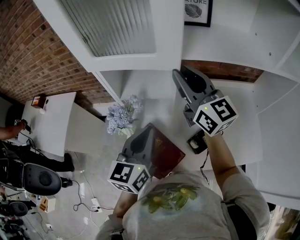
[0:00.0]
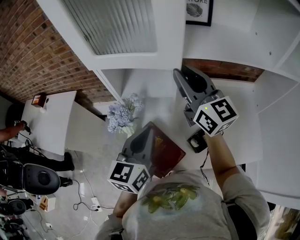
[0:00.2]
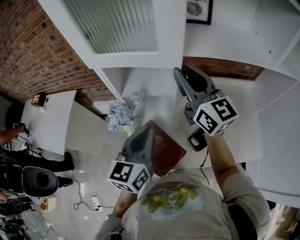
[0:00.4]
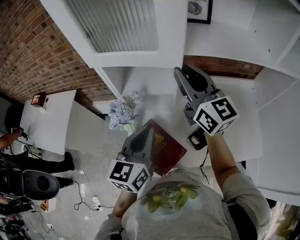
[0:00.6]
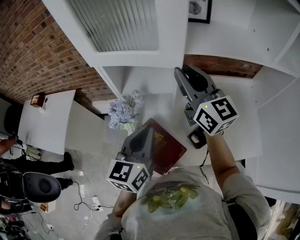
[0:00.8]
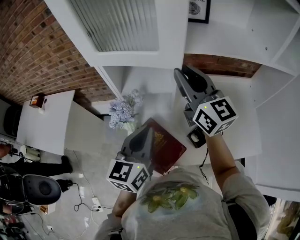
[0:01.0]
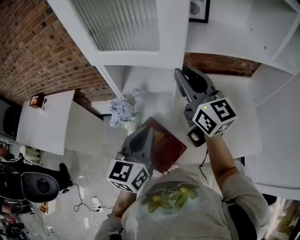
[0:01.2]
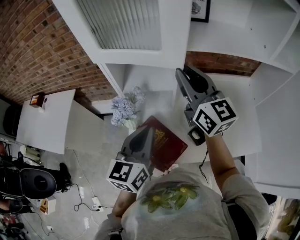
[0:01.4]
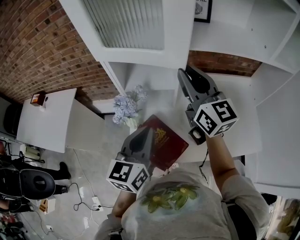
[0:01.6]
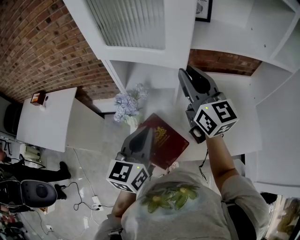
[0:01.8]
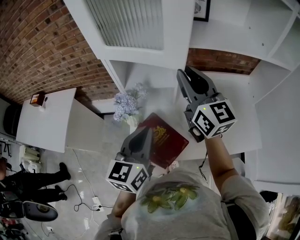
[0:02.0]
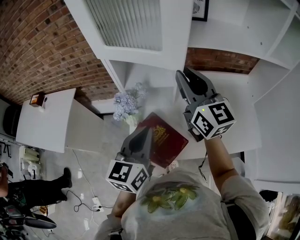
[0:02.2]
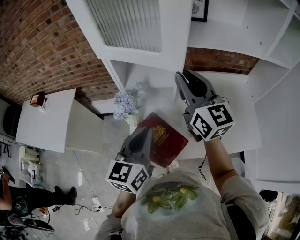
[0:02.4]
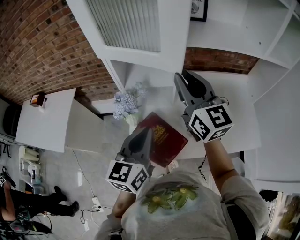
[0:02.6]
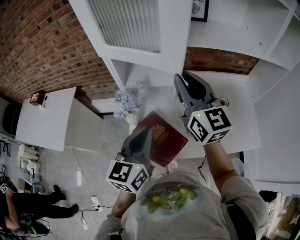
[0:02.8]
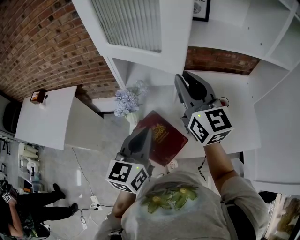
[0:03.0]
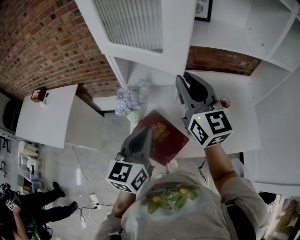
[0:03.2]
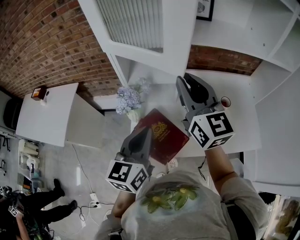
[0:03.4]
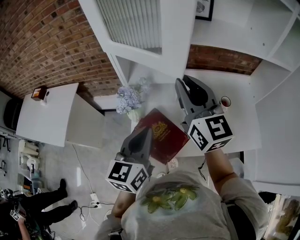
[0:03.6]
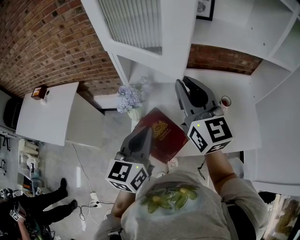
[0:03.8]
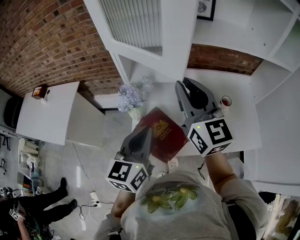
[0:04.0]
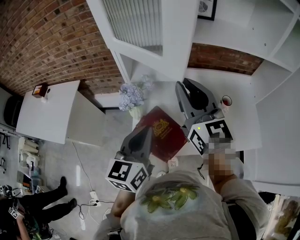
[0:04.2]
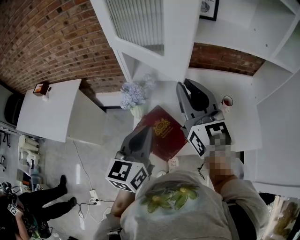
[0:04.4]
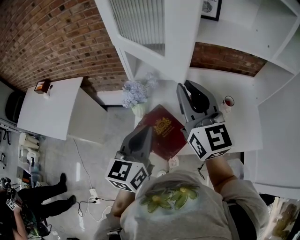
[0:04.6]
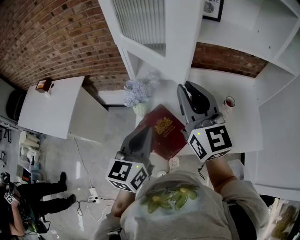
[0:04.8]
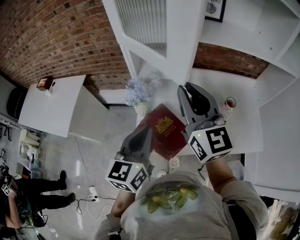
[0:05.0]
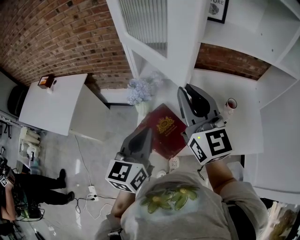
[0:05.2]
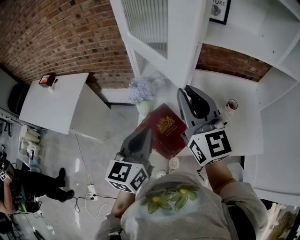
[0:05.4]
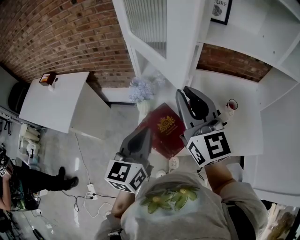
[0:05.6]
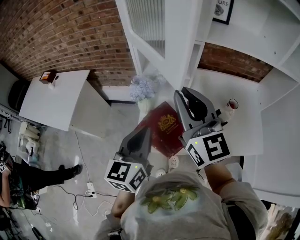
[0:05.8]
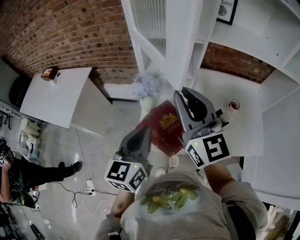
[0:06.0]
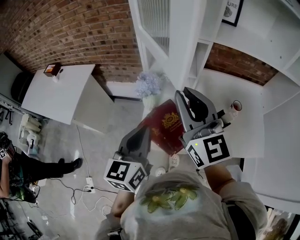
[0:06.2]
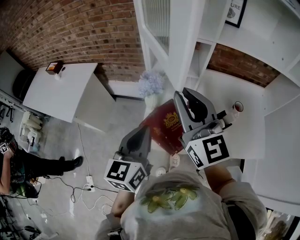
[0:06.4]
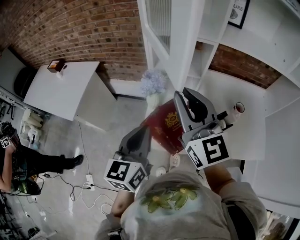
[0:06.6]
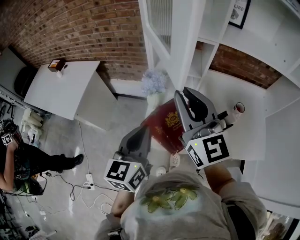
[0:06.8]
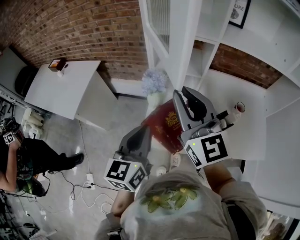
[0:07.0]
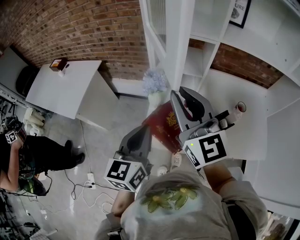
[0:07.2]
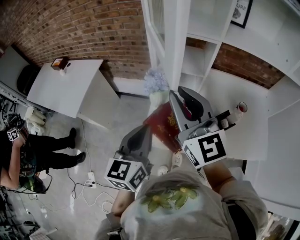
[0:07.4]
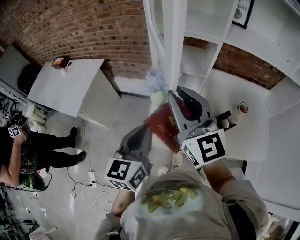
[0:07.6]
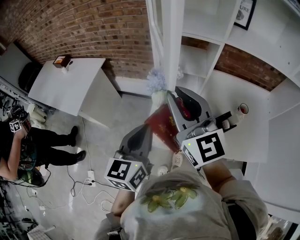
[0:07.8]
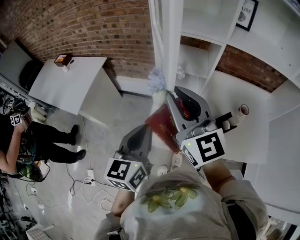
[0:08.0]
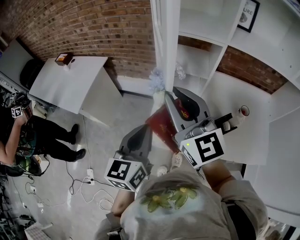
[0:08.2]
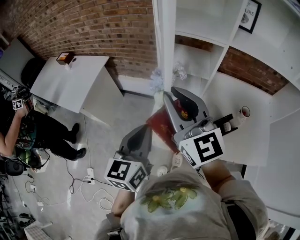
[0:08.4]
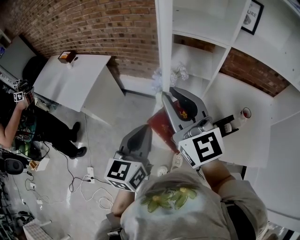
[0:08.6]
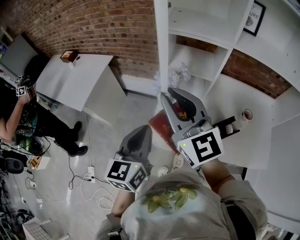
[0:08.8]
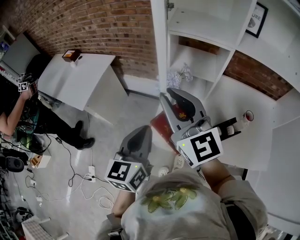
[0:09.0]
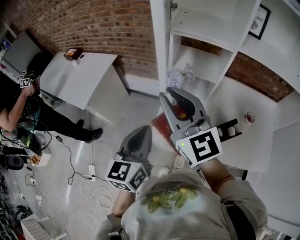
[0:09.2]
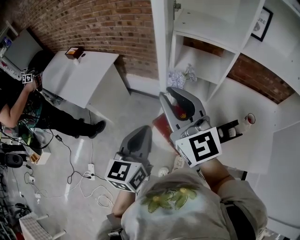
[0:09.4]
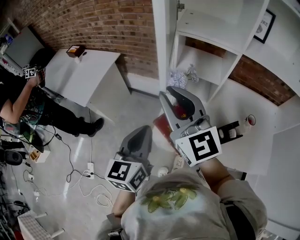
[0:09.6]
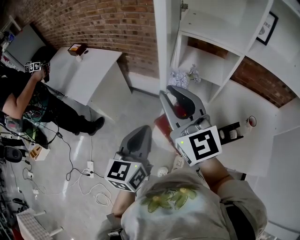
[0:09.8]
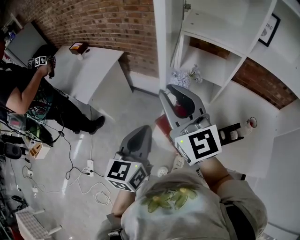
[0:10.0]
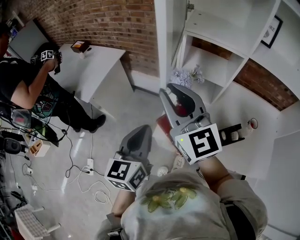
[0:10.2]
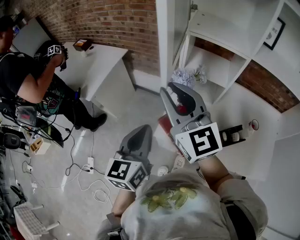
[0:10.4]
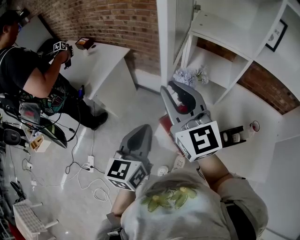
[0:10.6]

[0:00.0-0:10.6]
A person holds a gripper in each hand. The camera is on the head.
0:00.0 to 0:01.6: The left gripper shifts by approximately 5 cm.
0:01.6 to 0:03.0: The right gripper moves about 5 cm.
0:03.0 to 0:04.6: The right gripper heads backward, covering approximately 5 cm.
0:04.6 to 0:06.0: The right gripper changes place by approximately 5 cm.
0:06.0 to 0:07.6: The right gripper moves to the left, roughly 5 cm.
0:07.6 to 0:09.0: There are only small adjustments of the grippers.
0:09.0 to 0:10.6: The right gripper moves to the left, some 5 cm.

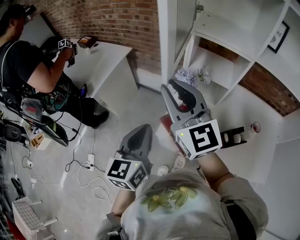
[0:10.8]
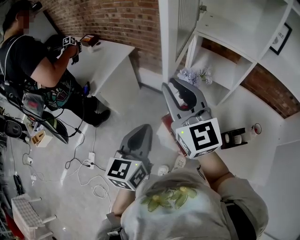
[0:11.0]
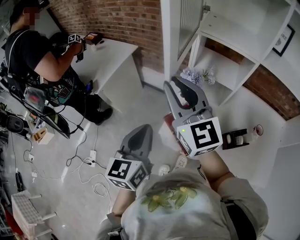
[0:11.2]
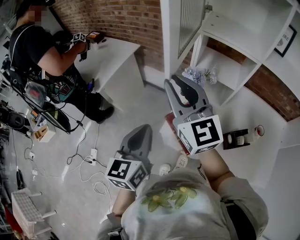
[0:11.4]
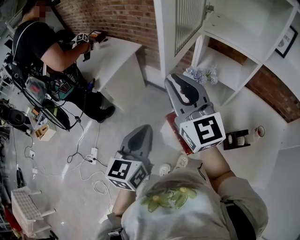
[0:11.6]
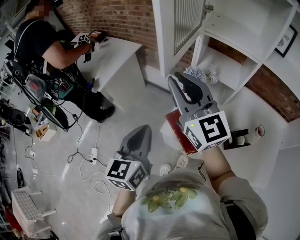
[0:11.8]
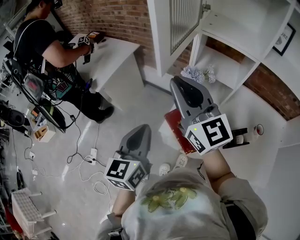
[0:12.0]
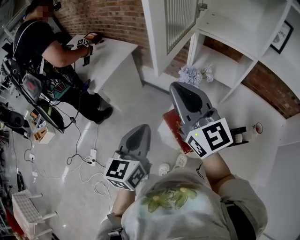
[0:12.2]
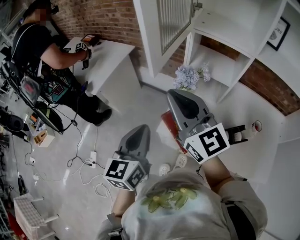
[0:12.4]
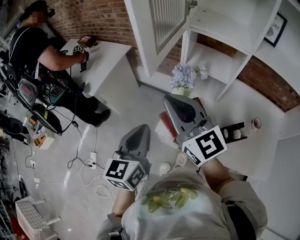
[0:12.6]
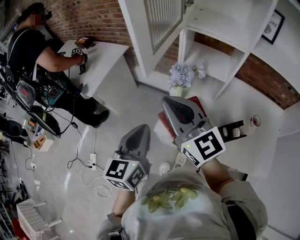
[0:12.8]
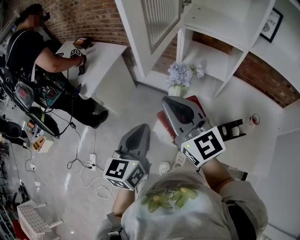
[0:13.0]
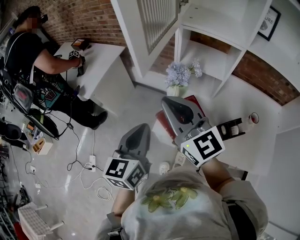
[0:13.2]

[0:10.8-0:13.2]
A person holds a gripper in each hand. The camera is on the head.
0:10.8 to 0:12.0: The grippers move only a little.
0:12.0 to 0:13.2: The right gripper moves roughly 5 cm.

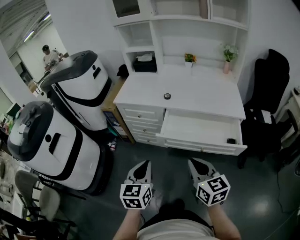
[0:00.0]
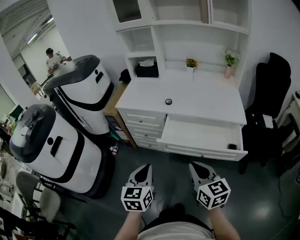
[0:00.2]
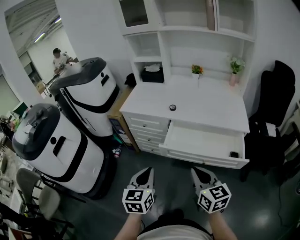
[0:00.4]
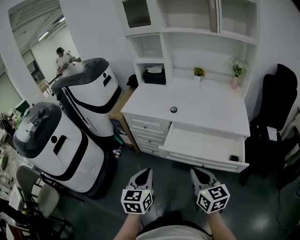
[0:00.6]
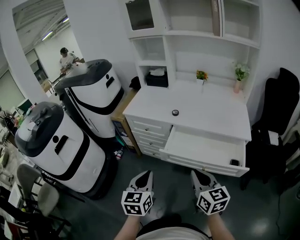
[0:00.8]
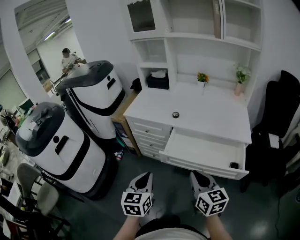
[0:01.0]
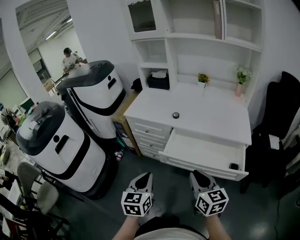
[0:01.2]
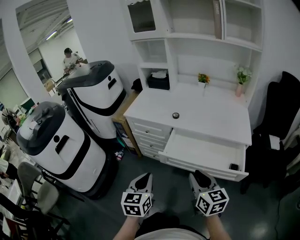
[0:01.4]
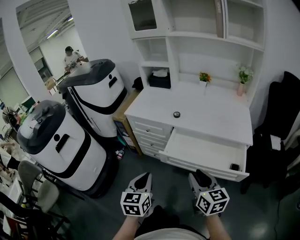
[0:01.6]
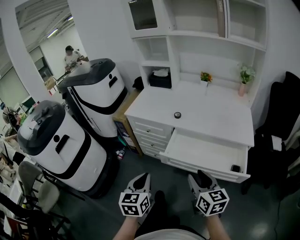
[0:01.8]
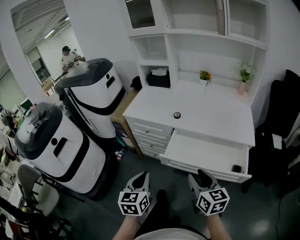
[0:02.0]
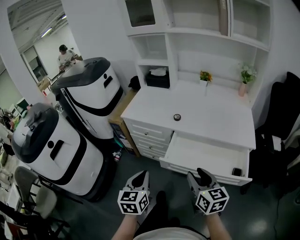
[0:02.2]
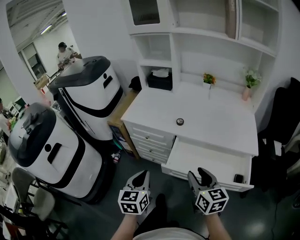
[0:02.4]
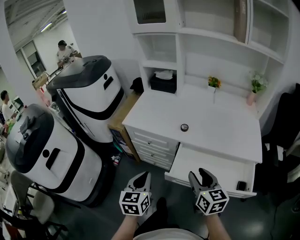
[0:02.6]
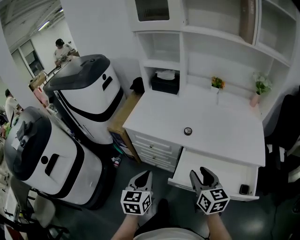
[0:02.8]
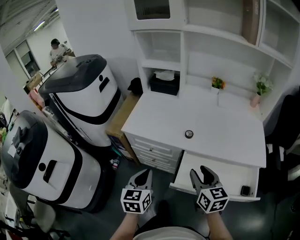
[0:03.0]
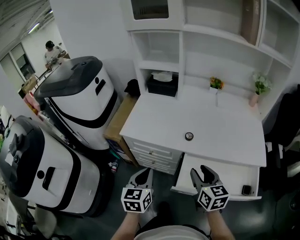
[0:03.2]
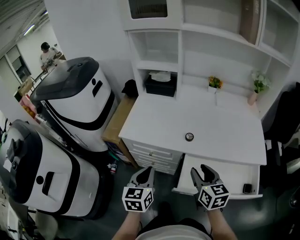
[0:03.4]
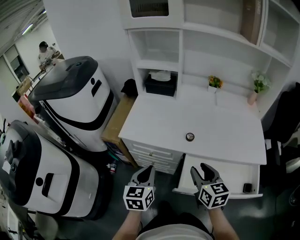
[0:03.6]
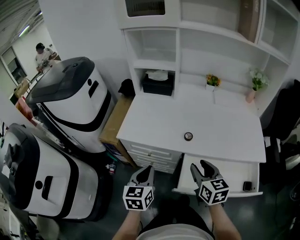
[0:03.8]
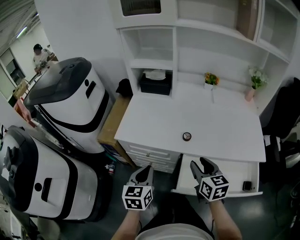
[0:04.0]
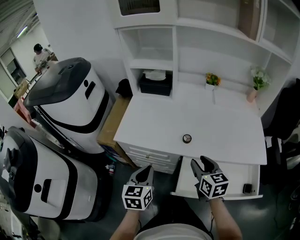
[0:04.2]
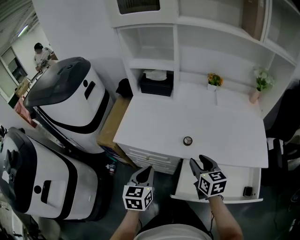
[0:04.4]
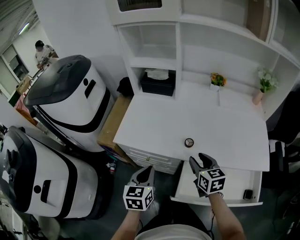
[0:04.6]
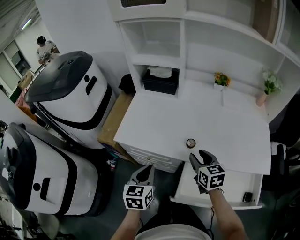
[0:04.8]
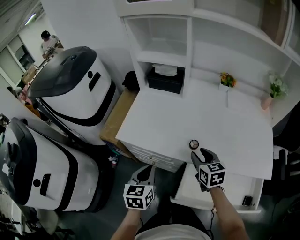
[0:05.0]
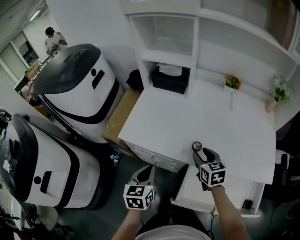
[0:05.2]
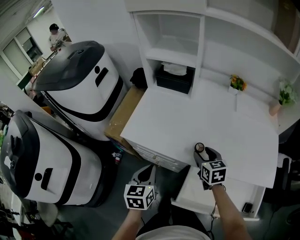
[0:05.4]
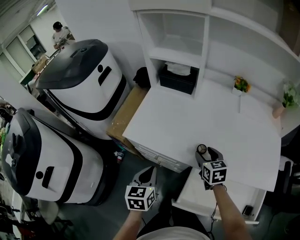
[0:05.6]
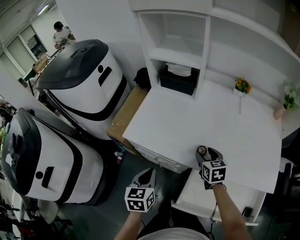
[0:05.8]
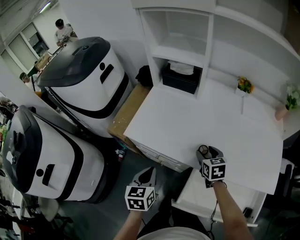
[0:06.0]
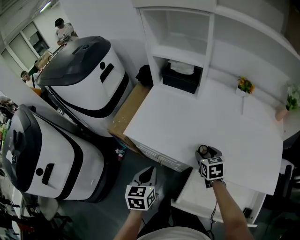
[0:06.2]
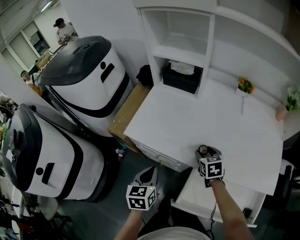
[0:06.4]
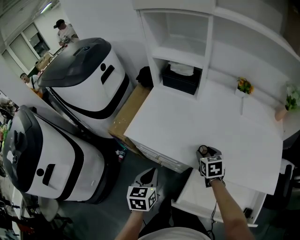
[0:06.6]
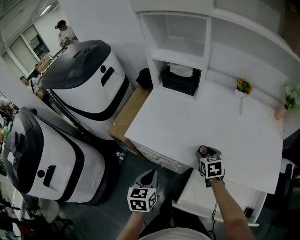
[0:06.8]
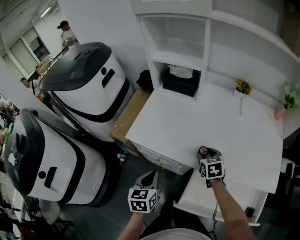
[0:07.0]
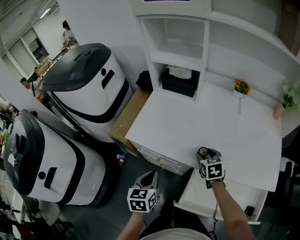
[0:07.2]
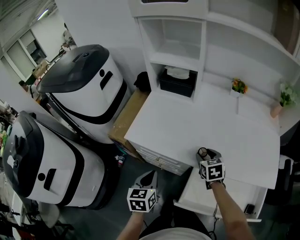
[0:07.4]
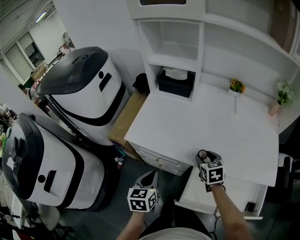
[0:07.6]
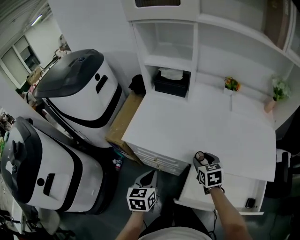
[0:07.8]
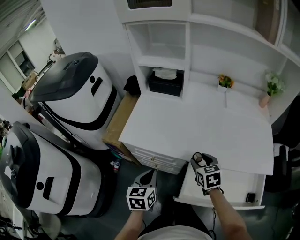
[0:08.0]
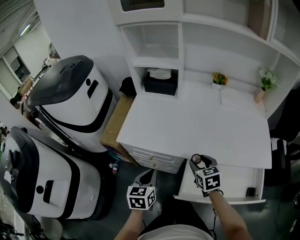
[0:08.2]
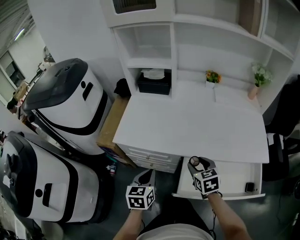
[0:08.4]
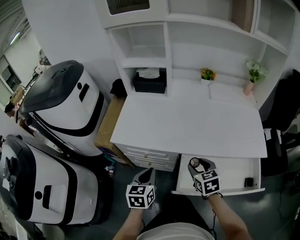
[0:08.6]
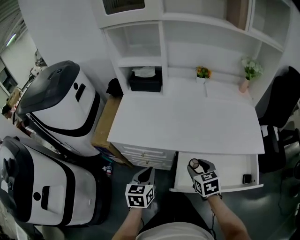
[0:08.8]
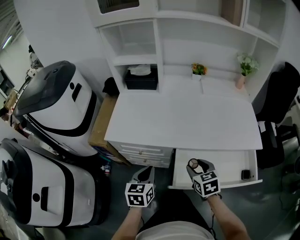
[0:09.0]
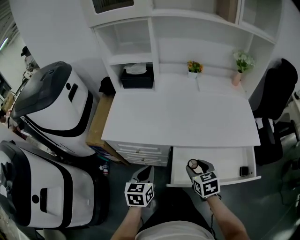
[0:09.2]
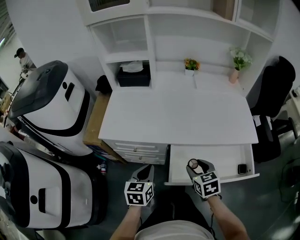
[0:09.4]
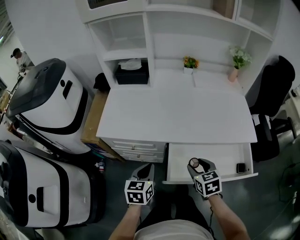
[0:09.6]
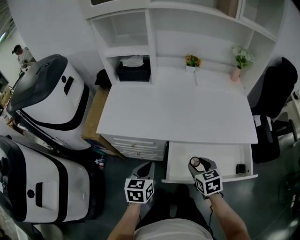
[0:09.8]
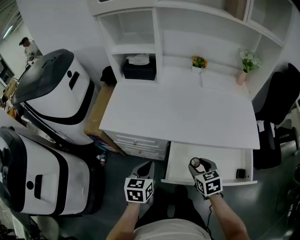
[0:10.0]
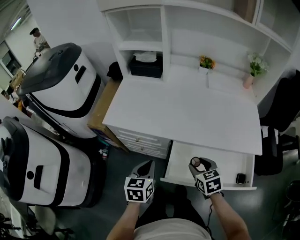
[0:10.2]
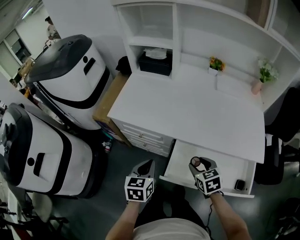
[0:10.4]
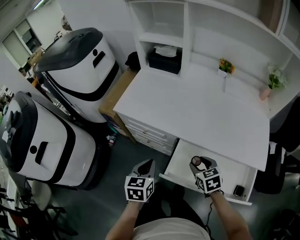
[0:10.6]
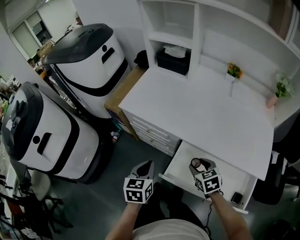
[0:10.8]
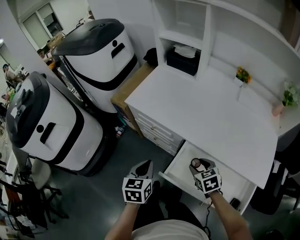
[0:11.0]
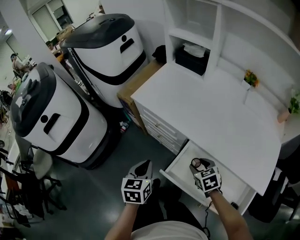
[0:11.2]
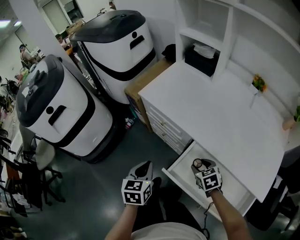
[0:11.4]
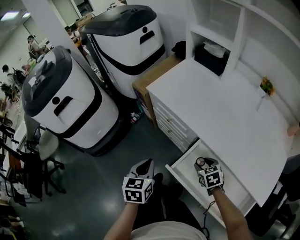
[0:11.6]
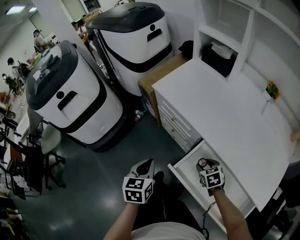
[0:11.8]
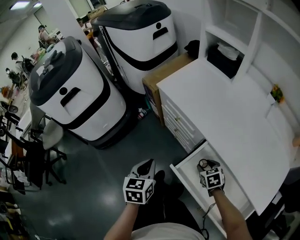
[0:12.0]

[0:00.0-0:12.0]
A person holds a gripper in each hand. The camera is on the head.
0:00.0 to 0:01.6: The right gripper shifts by about 5 cm, and opens.
0:01.6 to 0:03.0: Both grippers move forward, about 25 cm.
0:03.0 to 0:04.4: The two grippers go roughly 10 cm forward.
0:04.4 to 0:06.0: The right gripper is displaced forward and downward by about 15 cm. Meanwhile the left gripper shifts by approximately 5 cm.
0:06.0 to 0:07.6: The grippers make only small movements.
0:07.6 to 0:09.0: The right gripper goes about 15 cm backward. The left gripper ends up some 5 cm from where it was.
0:09.0 to 0:10.4: The right gripper shifts by some 5 cm.
0:10.4 to 0:12.0: The left gripper ends up roughly 10 cm from where it was, and changes its angle by approximately 30 degrees; the right gripper travels downward by some 10 cm, and rotates roughly 30 degrees.
